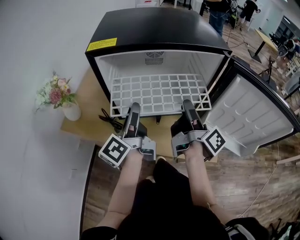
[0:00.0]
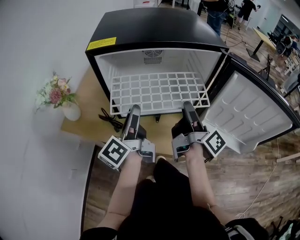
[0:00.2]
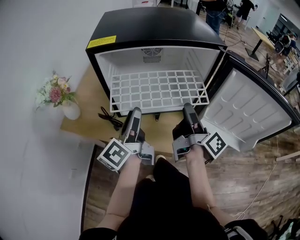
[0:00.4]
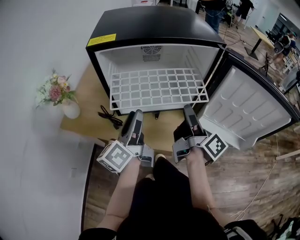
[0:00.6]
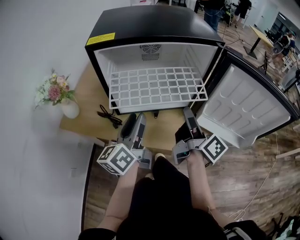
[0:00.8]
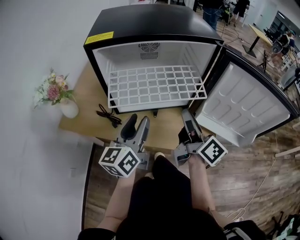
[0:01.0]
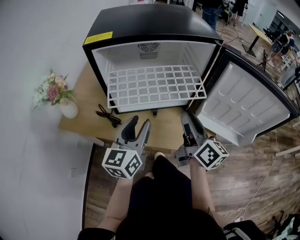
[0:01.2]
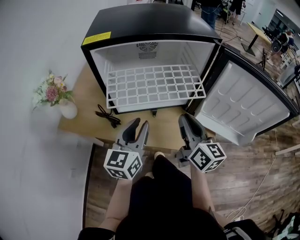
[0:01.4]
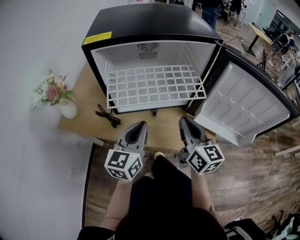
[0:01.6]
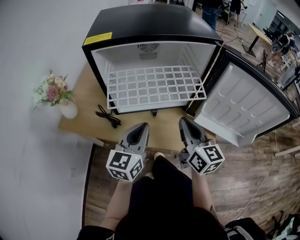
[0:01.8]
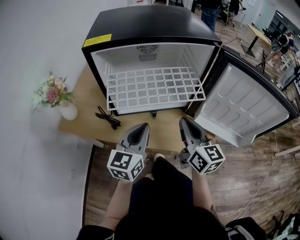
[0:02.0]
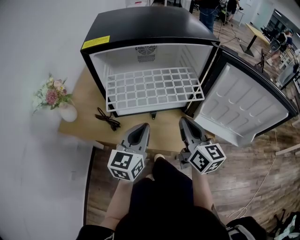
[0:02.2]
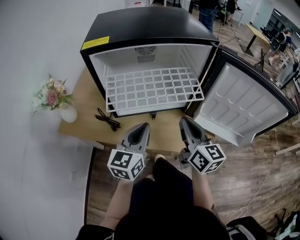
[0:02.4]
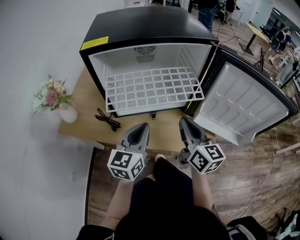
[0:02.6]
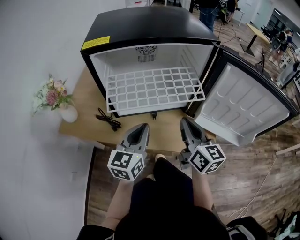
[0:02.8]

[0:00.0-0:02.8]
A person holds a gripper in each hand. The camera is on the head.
0.0 to 1.4 s: The left gripper shifts roughly 10 cm backward and to the right, and rotates around the line of its fingers by approximately 50 degrees, clockwise from behind. The right gripper heads backward, covering about 10 cm, and rolls counterclockwise, seen from behind, by some 60 degrees.
1.4 to 2.8 s: The left gripper closes.

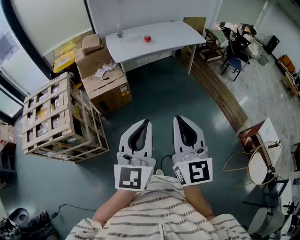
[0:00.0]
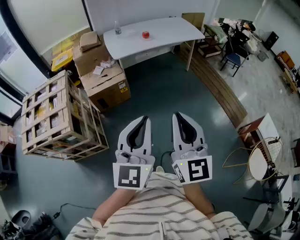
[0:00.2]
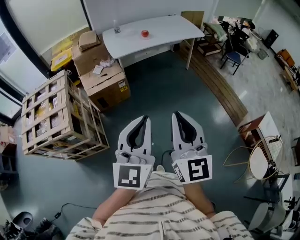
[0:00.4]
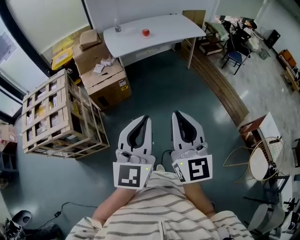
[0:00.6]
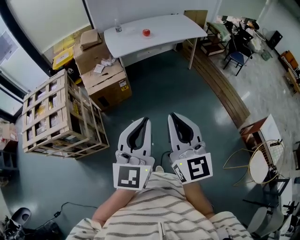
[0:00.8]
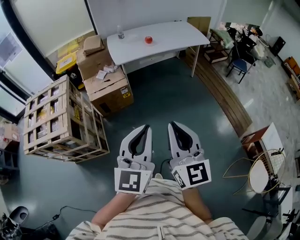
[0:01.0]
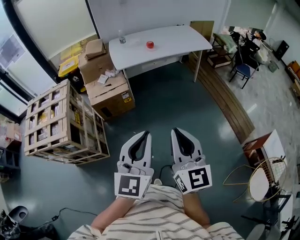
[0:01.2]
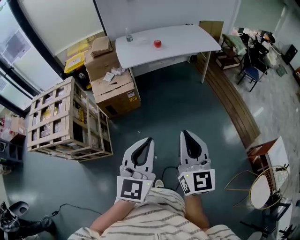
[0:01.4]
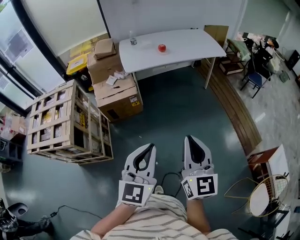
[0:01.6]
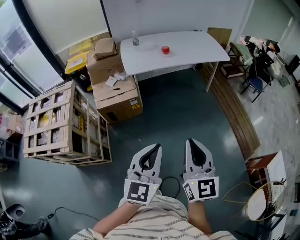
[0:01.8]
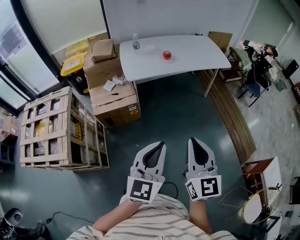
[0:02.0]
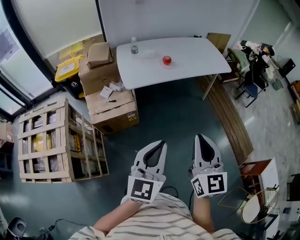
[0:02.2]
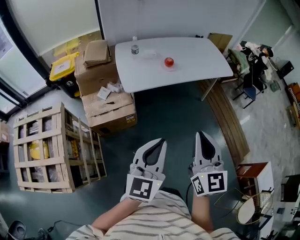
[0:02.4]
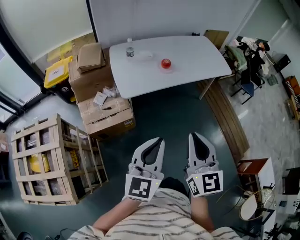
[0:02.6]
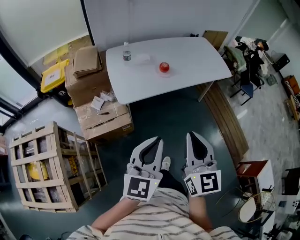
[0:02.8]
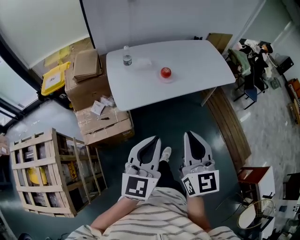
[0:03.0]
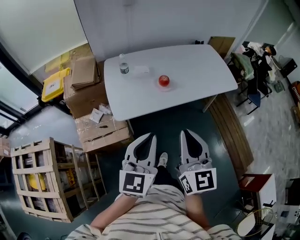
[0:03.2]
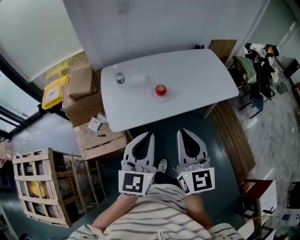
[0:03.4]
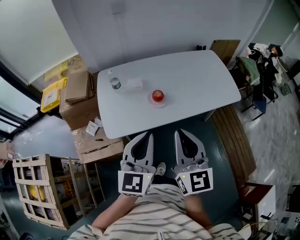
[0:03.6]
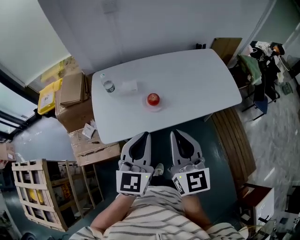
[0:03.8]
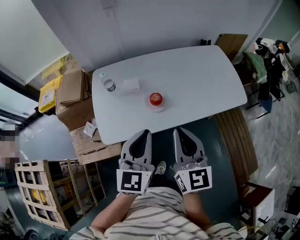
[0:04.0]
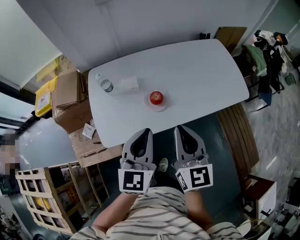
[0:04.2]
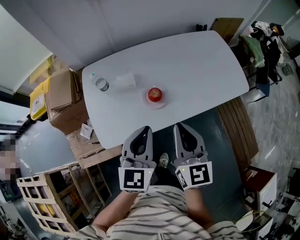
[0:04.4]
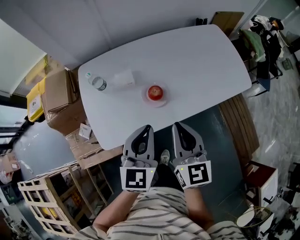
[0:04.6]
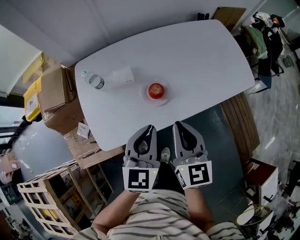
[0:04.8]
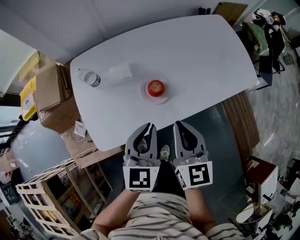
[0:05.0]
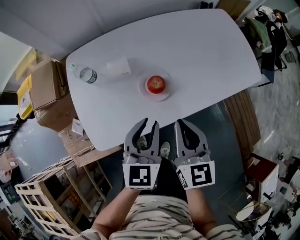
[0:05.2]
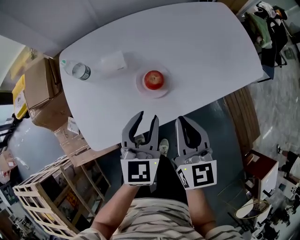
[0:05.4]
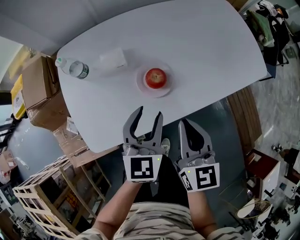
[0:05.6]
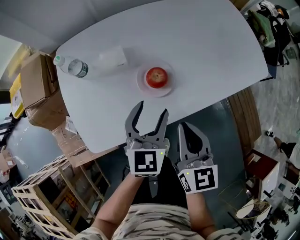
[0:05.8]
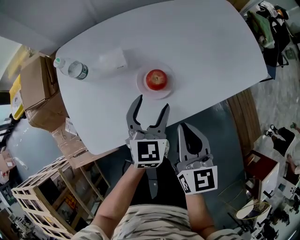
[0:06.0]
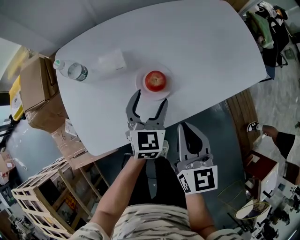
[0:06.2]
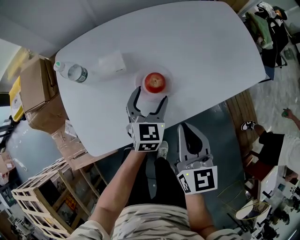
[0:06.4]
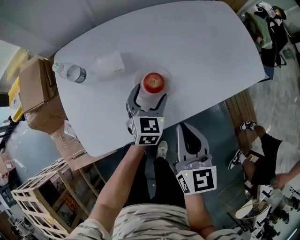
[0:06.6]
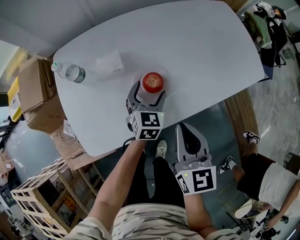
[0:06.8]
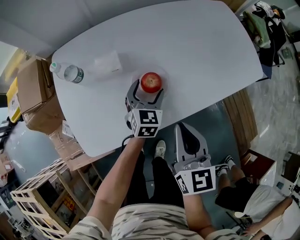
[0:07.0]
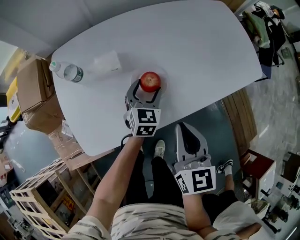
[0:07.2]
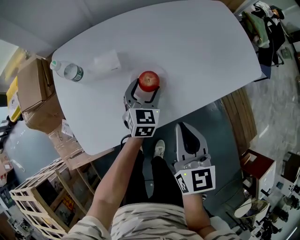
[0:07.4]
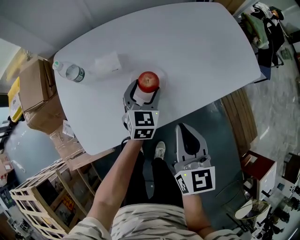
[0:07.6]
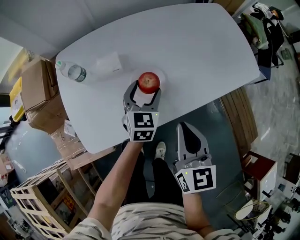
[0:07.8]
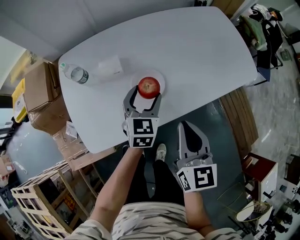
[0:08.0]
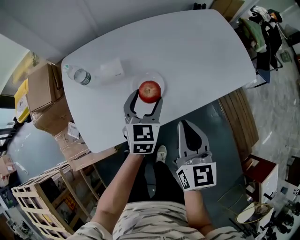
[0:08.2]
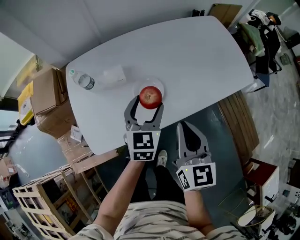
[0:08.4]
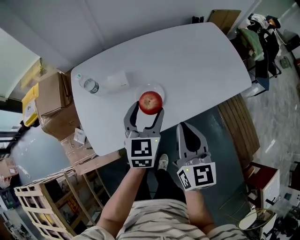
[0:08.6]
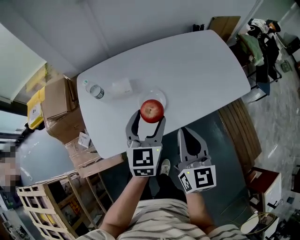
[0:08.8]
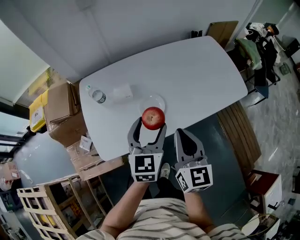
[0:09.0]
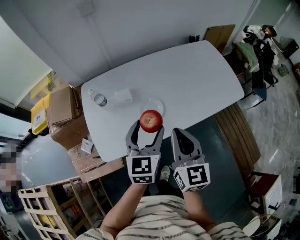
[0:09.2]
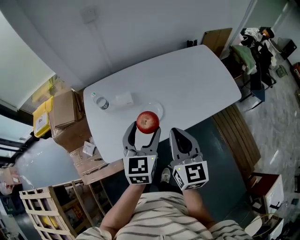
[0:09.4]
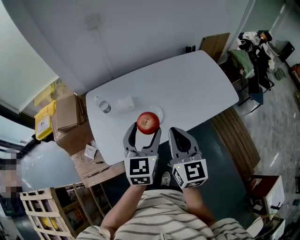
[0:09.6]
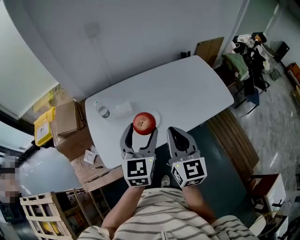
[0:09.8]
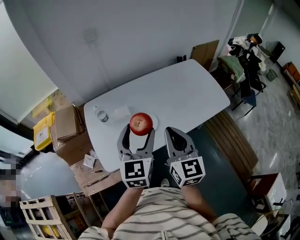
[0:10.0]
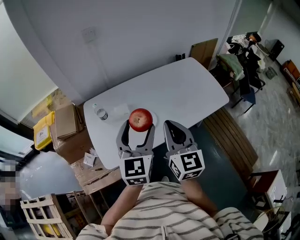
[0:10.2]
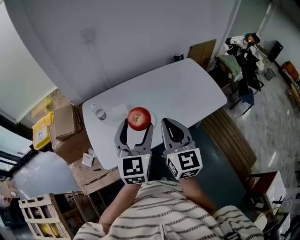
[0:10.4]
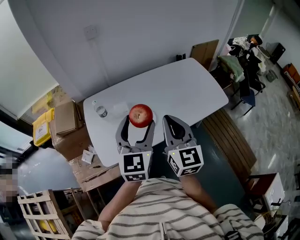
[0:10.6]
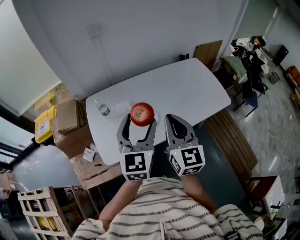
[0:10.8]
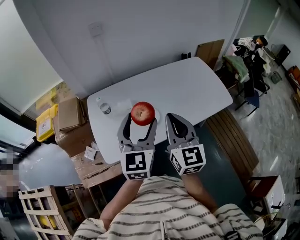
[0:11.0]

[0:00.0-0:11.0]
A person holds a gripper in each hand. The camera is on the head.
0.0 to 1.6 s: The two grippers go roughly 15 cm forward, to the right and downward.
1.6 to 3.2 s: Both grippers are carried forward, roughly 50 cm.
3.2 to 4.8 s: The grippers both shift forward and downward by approximately 35 cm.
4.8 to 6.2 s: The left gripper travels downward and forward by about 20 cm, and opens. Meanwhile the right gripper shifts approximately 10 cm downward.
7.8 to 9.4 s: The right gripper travels upward by about 15 cm, while the left gripper travels upward and backward by approximately 25 cm.
9.4 to 11.0 s: The grippers both shift upward by some 10 cm.

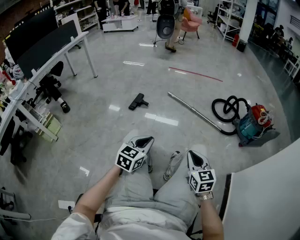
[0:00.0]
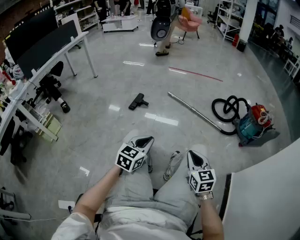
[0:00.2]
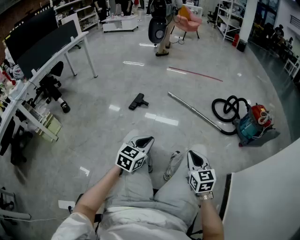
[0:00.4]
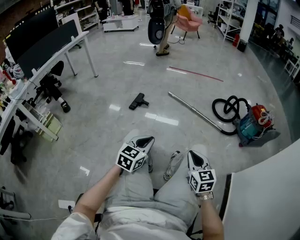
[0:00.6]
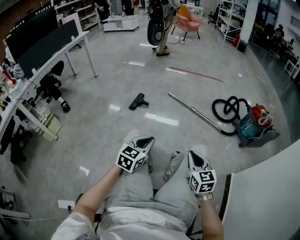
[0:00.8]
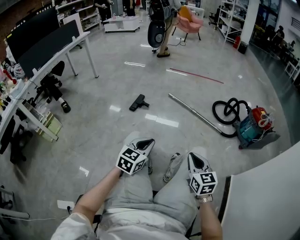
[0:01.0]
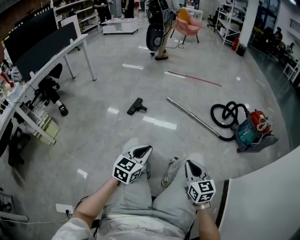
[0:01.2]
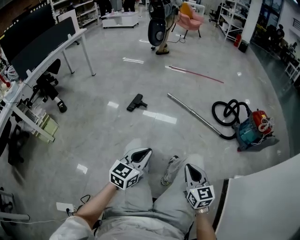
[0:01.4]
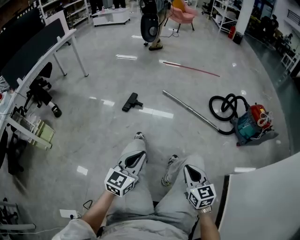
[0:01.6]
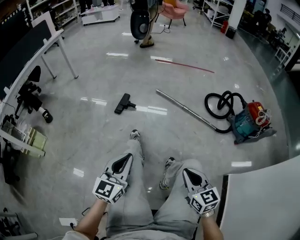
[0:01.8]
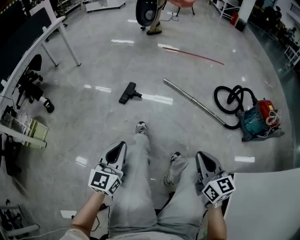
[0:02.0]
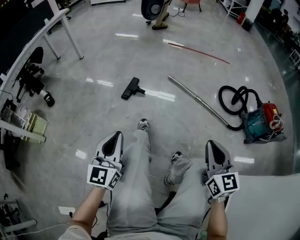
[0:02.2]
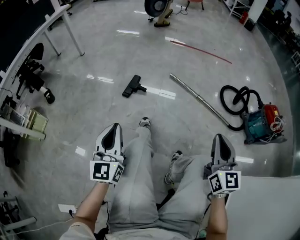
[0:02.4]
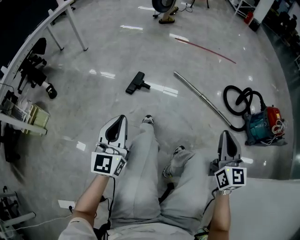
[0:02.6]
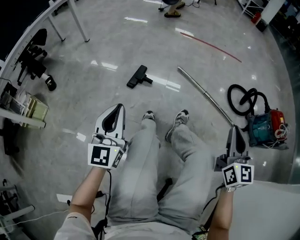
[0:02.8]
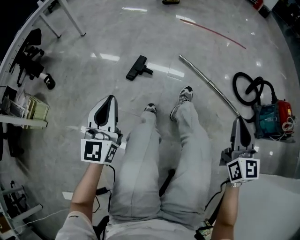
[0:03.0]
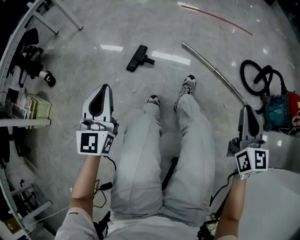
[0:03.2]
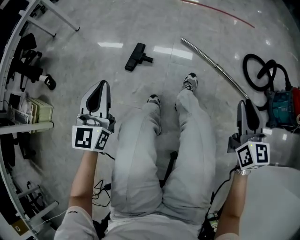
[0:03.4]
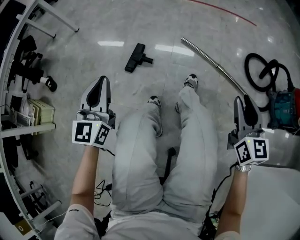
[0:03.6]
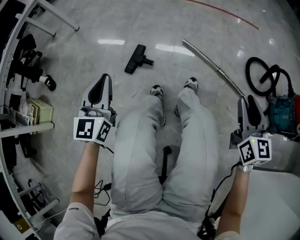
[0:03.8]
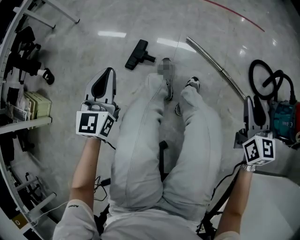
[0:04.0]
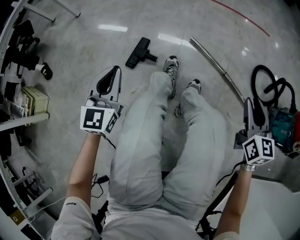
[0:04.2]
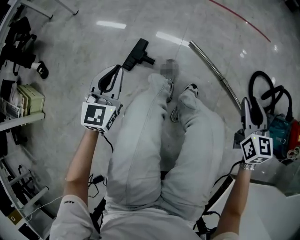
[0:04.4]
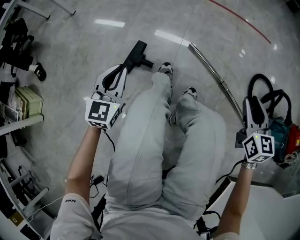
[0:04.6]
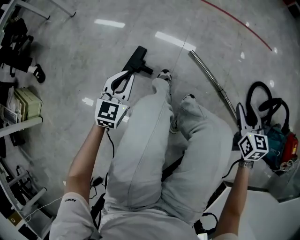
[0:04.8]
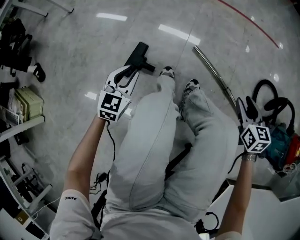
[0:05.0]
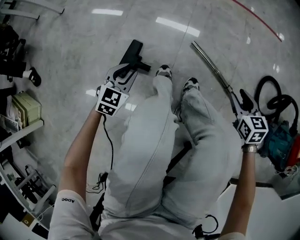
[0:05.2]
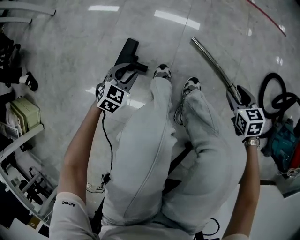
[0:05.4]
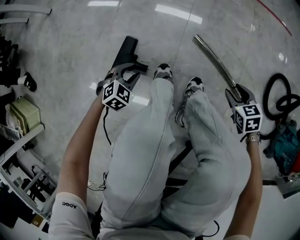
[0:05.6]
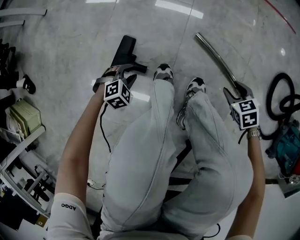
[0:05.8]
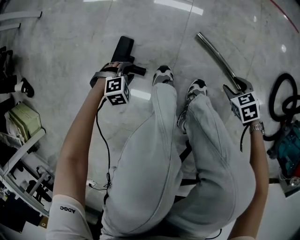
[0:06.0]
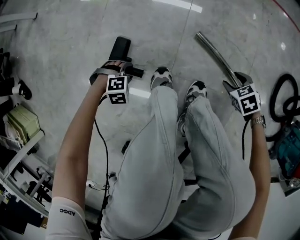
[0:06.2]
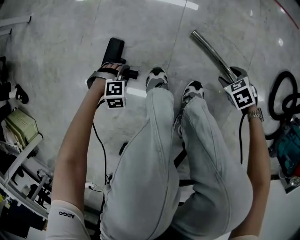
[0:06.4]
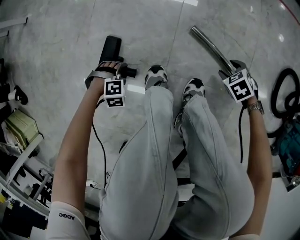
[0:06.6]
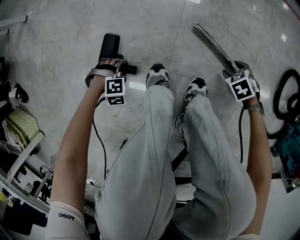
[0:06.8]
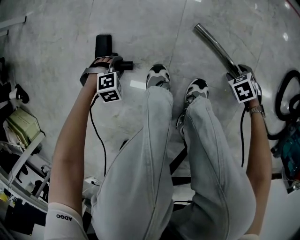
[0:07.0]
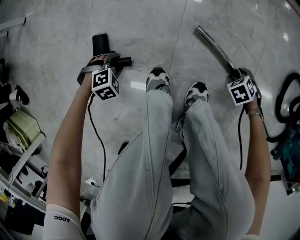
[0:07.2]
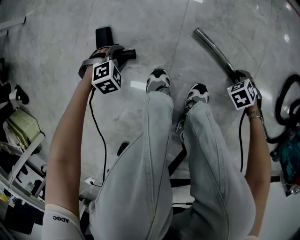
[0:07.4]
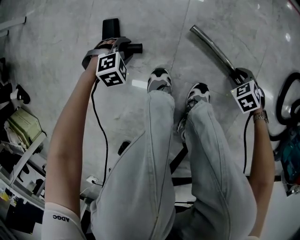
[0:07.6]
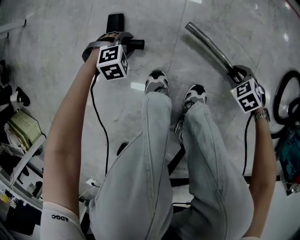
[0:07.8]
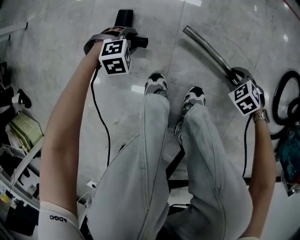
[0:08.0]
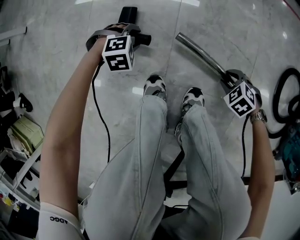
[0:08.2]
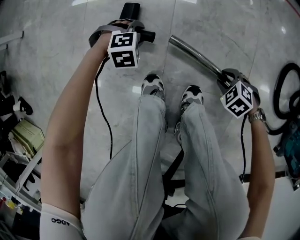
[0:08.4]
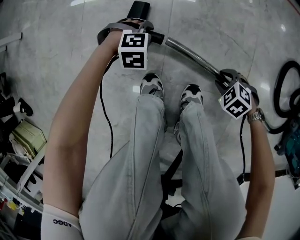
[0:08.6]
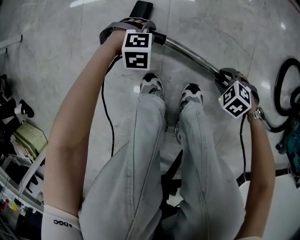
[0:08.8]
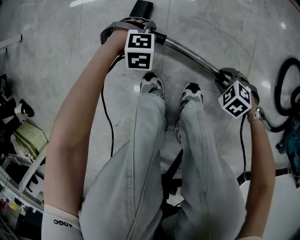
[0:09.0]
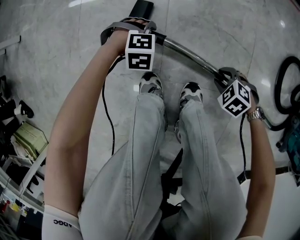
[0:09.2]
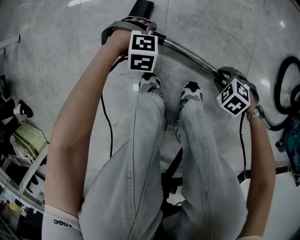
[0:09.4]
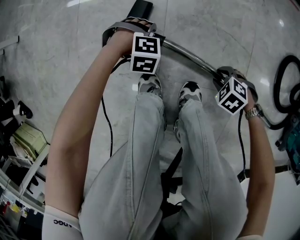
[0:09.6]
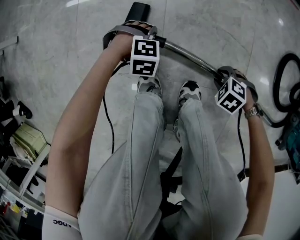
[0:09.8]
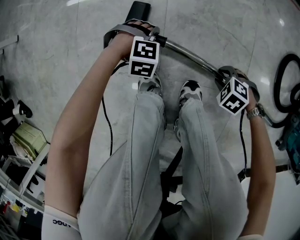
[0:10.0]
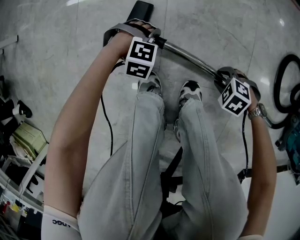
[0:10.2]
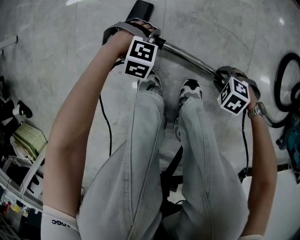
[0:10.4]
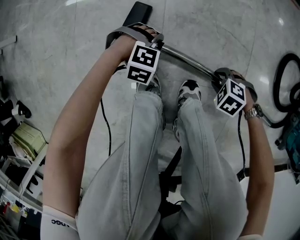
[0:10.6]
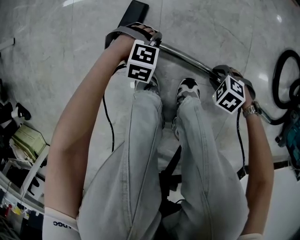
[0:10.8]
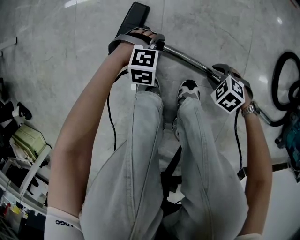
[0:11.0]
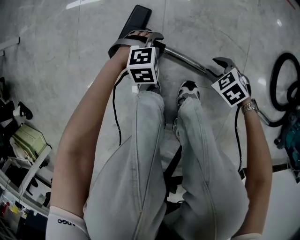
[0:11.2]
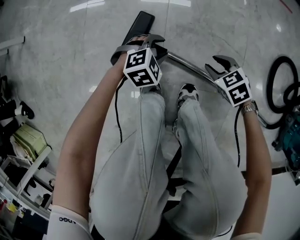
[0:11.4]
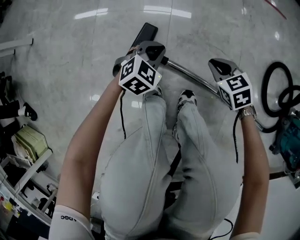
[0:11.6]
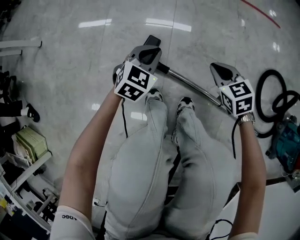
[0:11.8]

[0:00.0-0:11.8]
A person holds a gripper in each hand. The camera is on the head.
0.0 to 1.4 s: The grippers move only a little.
1.4 to 3.0 s: The right gripper shifts about 30 cm forward; the left gripper shifts approximately 35 cm forward and to the left, and swivels approximately 30 degrees.
3.0 to 4.4 s: The two grippers go some 30 cm forward and downward. The right gripper opens its fingers.
4.4 to 6.0 s: Both grippers move downward, some 40 cm. The right gripper angles its fingers downward, by roughly 50 degrees, and opens up, while the left gripper angles its fingers downward, by about 60 degrees, and opens up.
6.0 to 7.4 s: The left gripper moves roughly 10 cm; the right gripper travels downward by roughly 15 cm.
7.4 to 8.8 s: The right gripper ends up approximately 5 cm from where it was. Meanwhile the left gripper changes place by about 20 cm, and turns by some 30 degrees.
8.8 to 10.4 s: The grippers make only small movements.
10.4 to 11.8 s: The grippers both shift upward by roughly 25 cm. The right gripper angles its fingers upward, by about 30 degrees, and closes, while the left gripper twists some 60 degrees counterclockwise, seen from behind, and closes.
